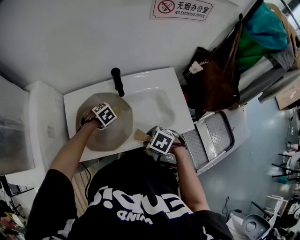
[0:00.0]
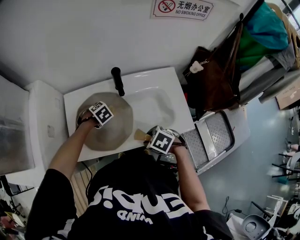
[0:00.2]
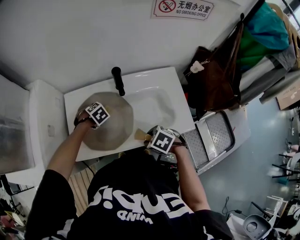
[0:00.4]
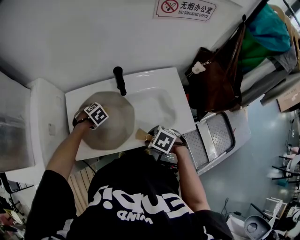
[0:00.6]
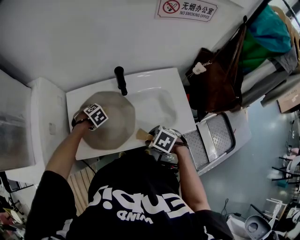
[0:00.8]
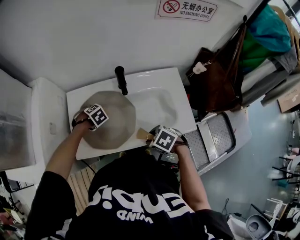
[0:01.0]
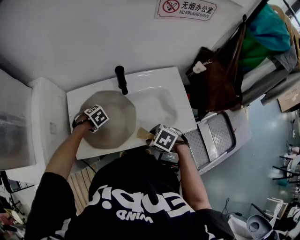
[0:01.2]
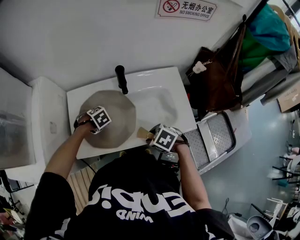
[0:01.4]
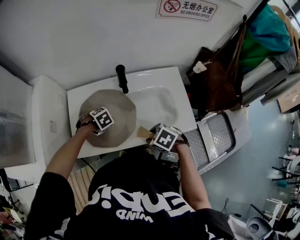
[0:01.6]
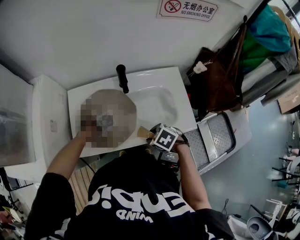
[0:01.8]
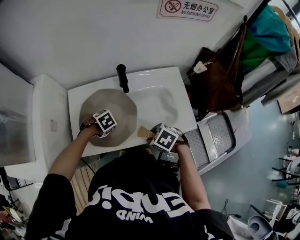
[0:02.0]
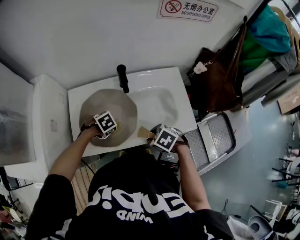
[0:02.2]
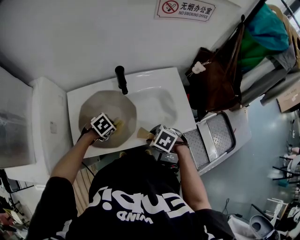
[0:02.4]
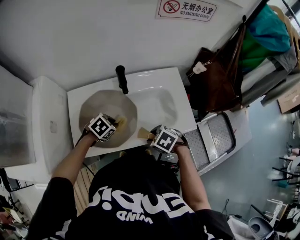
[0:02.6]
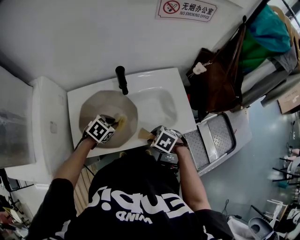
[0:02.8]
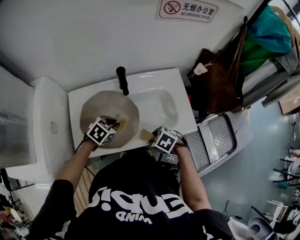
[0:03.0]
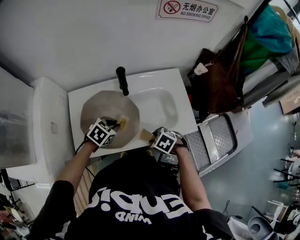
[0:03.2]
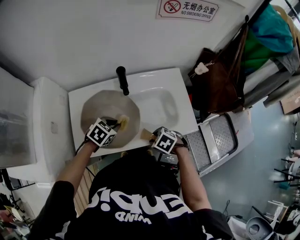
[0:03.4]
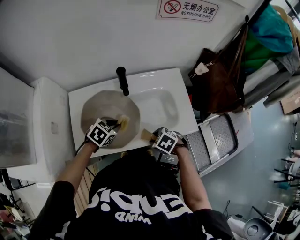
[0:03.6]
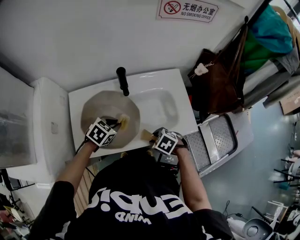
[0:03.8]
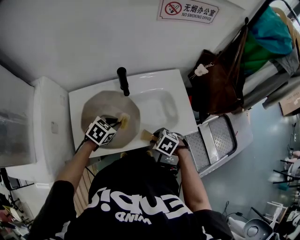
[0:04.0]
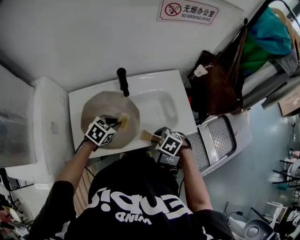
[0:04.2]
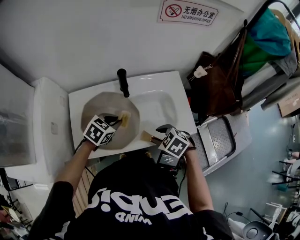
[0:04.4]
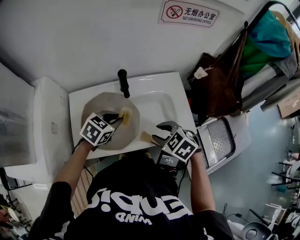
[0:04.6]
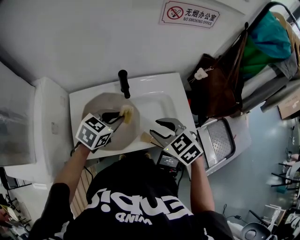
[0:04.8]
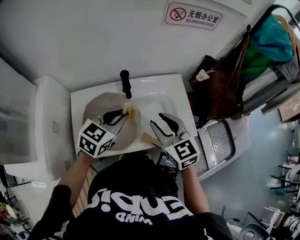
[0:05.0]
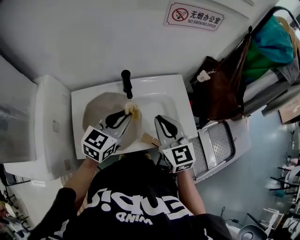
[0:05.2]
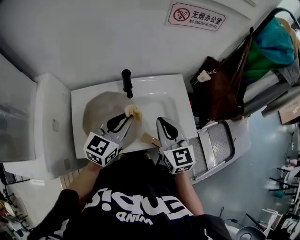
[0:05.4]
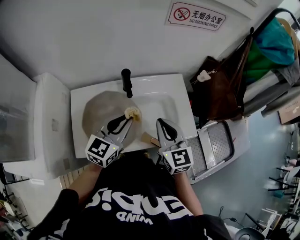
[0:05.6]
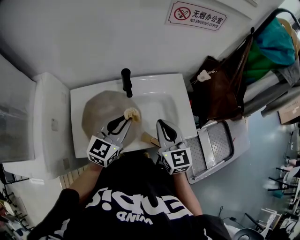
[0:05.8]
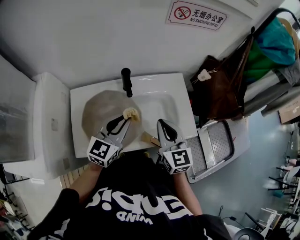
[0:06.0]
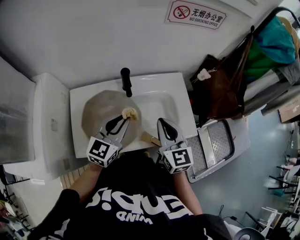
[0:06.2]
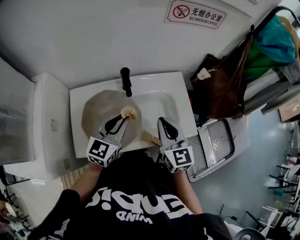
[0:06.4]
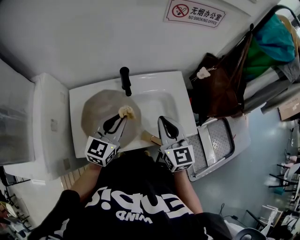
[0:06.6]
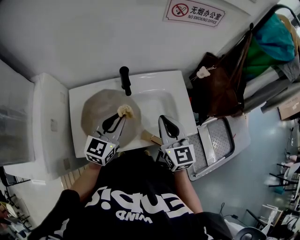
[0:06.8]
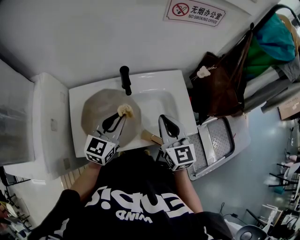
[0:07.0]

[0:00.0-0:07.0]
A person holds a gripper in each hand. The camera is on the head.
0:00.0 to 0:01.4: The left gripper moves some 5 cm.
0:01.4 to 0:02.8: The left gripper moves some 10 cm, and swivels approximately 30 degrees.
0:02.8 to 0:04.2: The grippers move only a little.
0:04.2 to 0:05.6: Both grippers move upward, roughly 20 cm. The left gripper angles its fingers upward, by approximately 40 degrees, while the right gripper tilts its fingers roughly 50 degrees upward, and closes its fingers.
0:05.6 to 0:07.0: There are only small adjustments of the grippers.

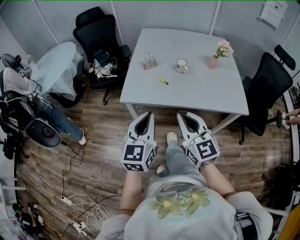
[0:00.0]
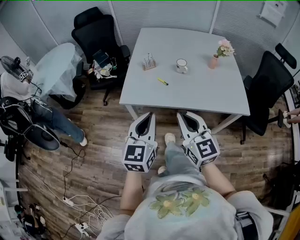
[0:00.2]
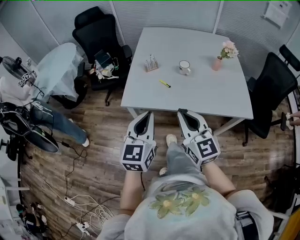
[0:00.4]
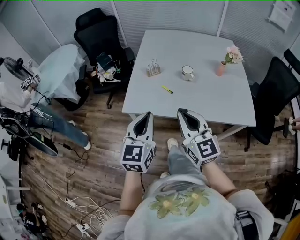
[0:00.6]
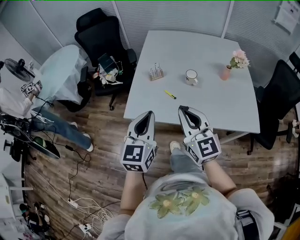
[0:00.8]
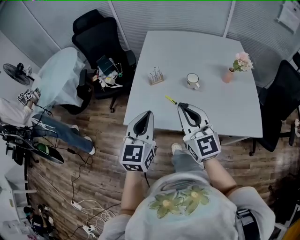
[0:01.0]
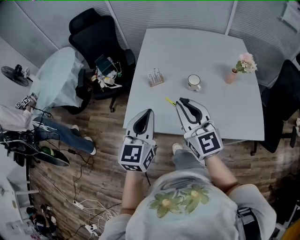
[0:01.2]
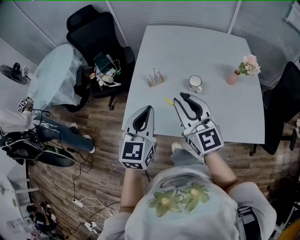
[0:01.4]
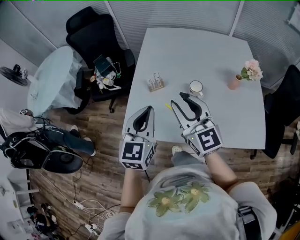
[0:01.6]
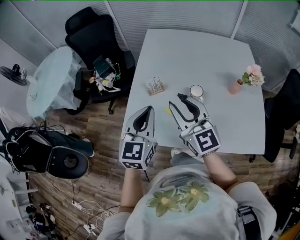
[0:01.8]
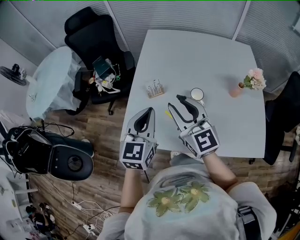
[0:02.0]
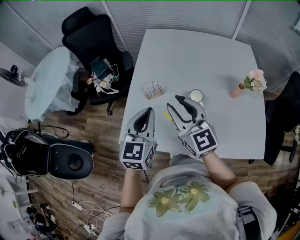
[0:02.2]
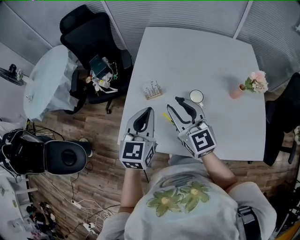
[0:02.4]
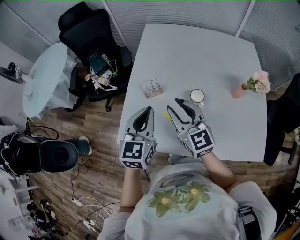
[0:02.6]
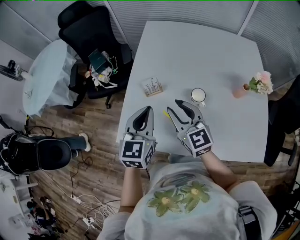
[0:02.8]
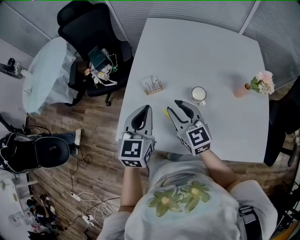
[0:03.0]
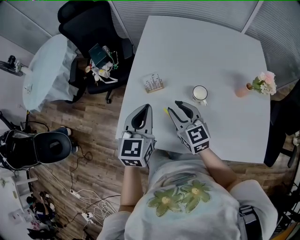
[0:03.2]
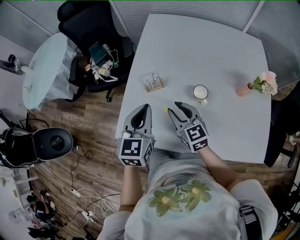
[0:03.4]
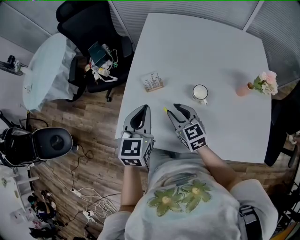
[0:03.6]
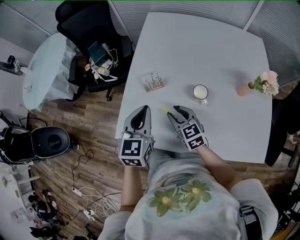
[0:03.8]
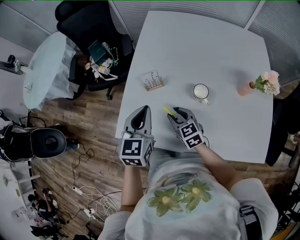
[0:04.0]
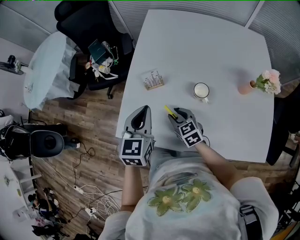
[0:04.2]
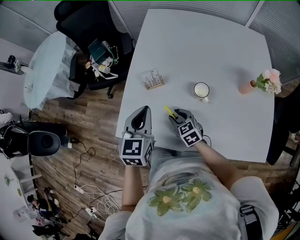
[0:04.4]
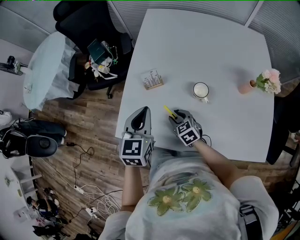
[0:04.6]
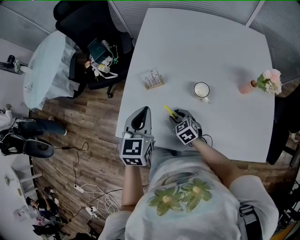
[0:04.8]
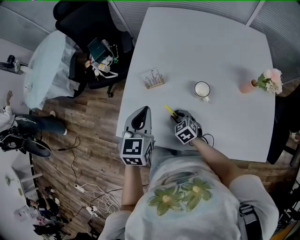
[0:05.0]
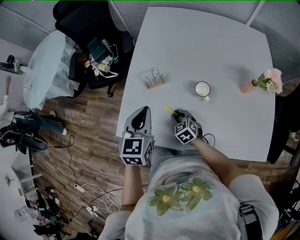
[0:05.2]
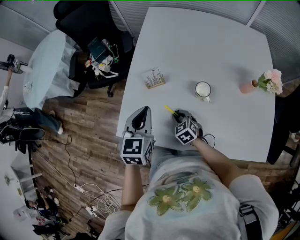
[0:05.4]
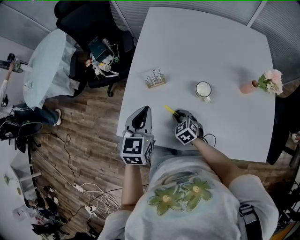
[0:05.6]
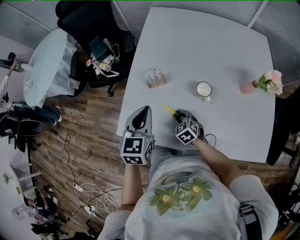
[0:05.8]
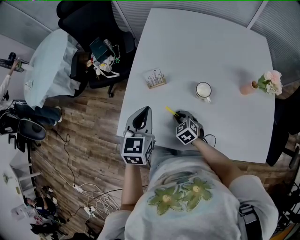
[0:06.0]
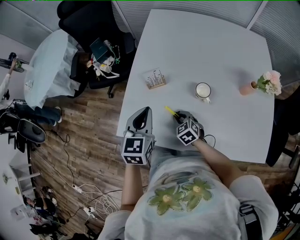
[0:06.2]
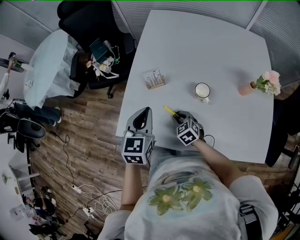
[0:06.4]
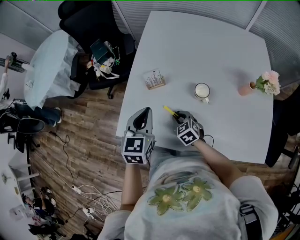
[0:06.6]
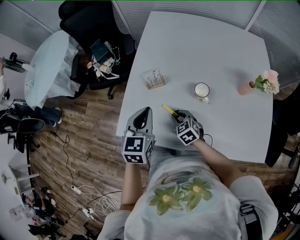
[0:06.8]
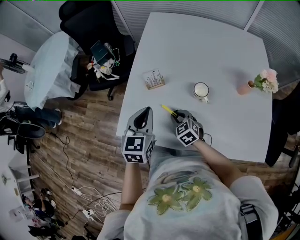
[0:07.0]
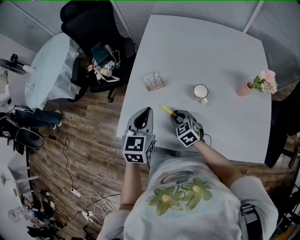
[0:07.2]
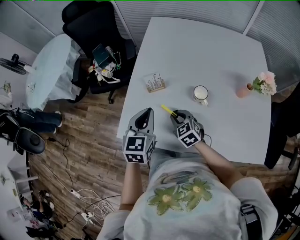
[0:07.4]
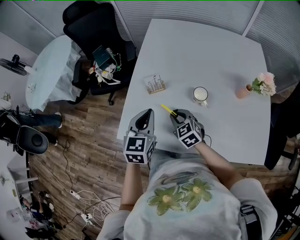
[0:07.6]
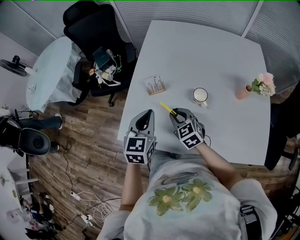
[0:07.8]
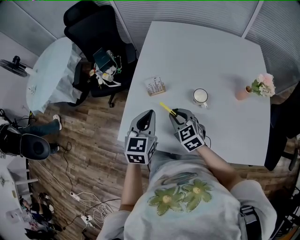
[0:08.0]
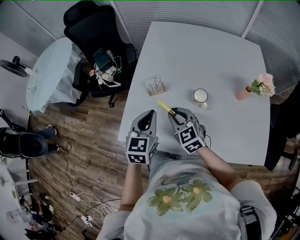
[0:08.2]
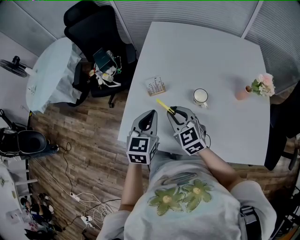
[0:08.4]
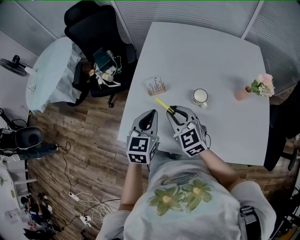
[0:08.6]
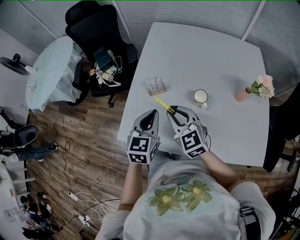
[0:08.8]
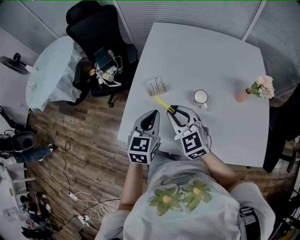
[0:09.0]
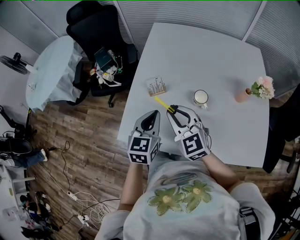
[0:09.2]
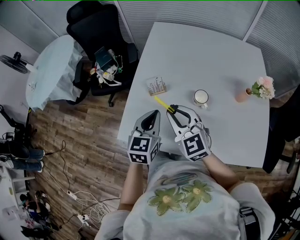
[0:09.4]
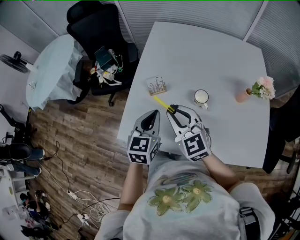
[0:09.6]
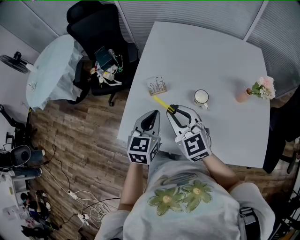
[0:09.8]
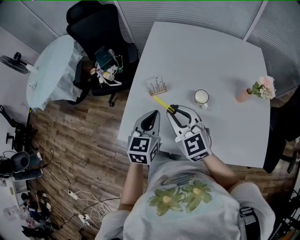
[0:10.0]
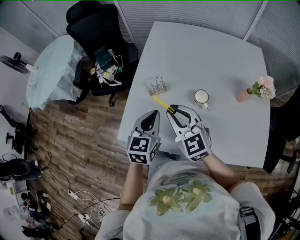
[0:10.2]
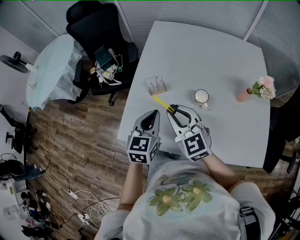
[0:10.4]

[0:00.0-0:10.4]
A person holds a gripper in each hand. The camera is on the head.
0:00.0 to 0:01.4: Both grippers travel together forward, approximately 30 cm. The right gripper opens up.
0:01.4 to 0:03.0: The right gripper heads downward and forward, covering some 20 cm; the left gripper shifts about 15 cm forward and downward.
0:03.0 to 0:04.4: The right gripper shifts approximately 20 cm downward, and swivels approximately 30 degrees.
0:04.4 to 0:06.0: There are only small adjustments of the grippers.
0:06.0 to 0:07.4: The right gripper is displaced upward by approximately 10 cm.
0:07.4 to 0:09.0: The right gripper heads upward, covering some 15 cm, and swivels about 20 degrees.
0:09.0 to 0:10.4: There are only small adjustments of the grippers.

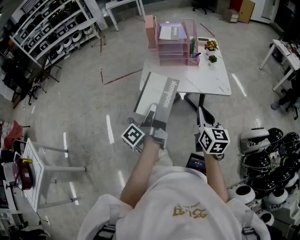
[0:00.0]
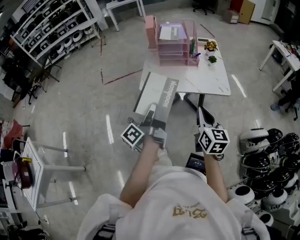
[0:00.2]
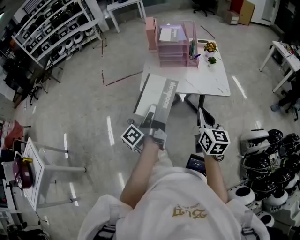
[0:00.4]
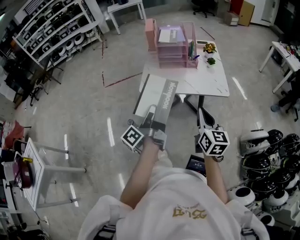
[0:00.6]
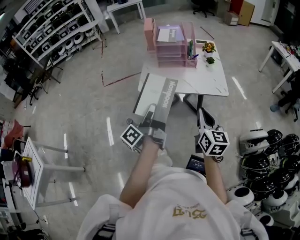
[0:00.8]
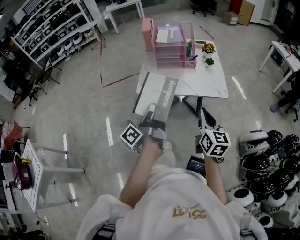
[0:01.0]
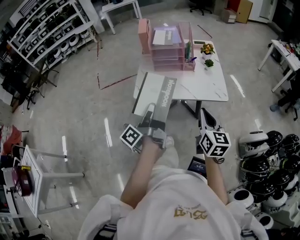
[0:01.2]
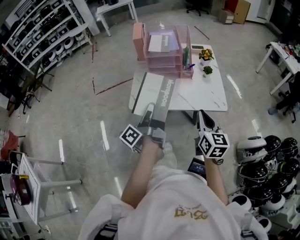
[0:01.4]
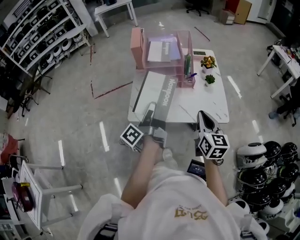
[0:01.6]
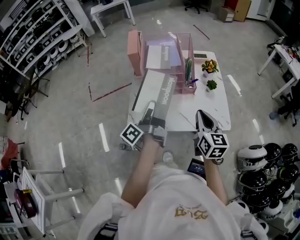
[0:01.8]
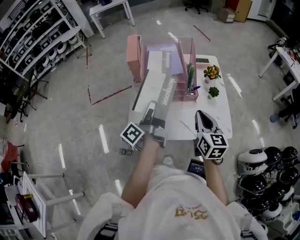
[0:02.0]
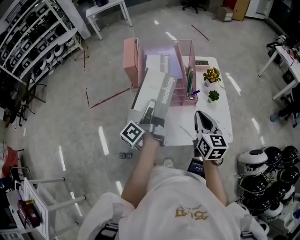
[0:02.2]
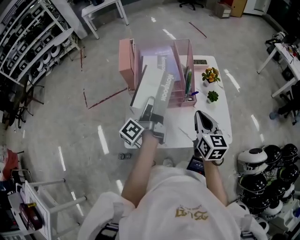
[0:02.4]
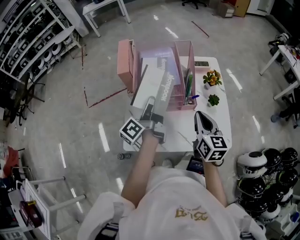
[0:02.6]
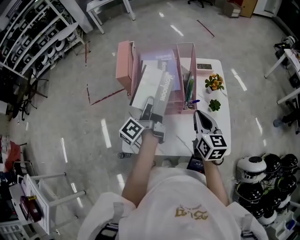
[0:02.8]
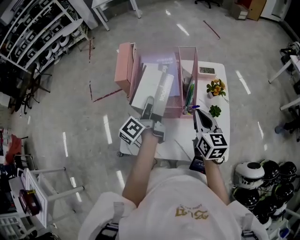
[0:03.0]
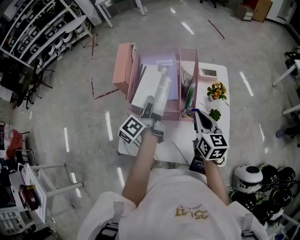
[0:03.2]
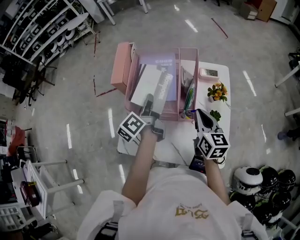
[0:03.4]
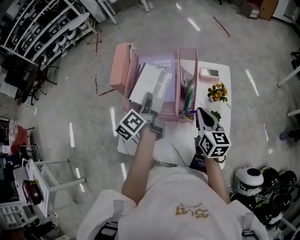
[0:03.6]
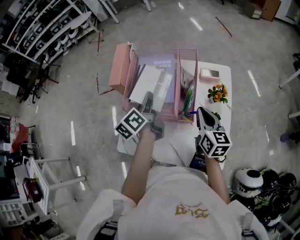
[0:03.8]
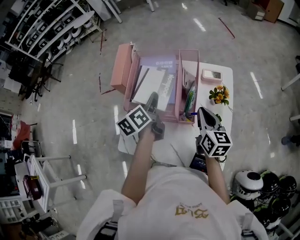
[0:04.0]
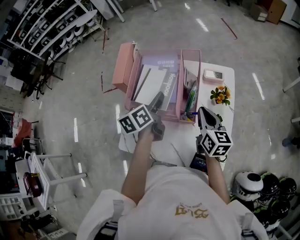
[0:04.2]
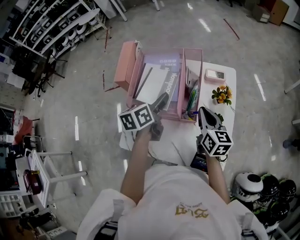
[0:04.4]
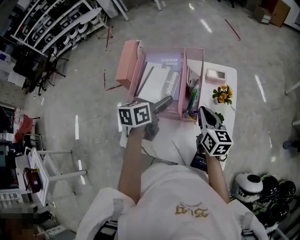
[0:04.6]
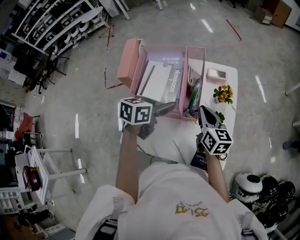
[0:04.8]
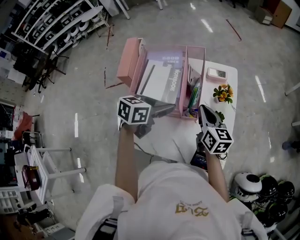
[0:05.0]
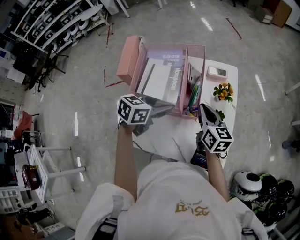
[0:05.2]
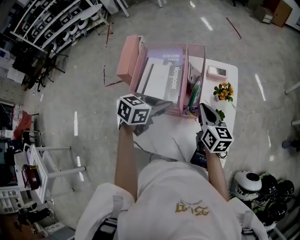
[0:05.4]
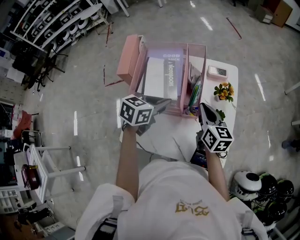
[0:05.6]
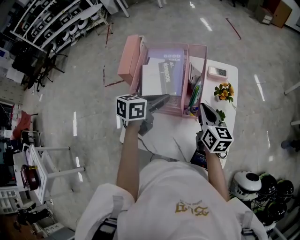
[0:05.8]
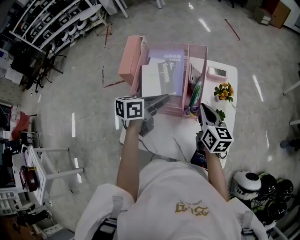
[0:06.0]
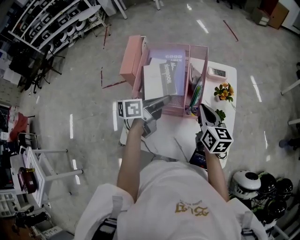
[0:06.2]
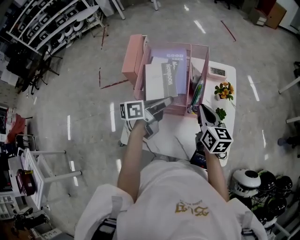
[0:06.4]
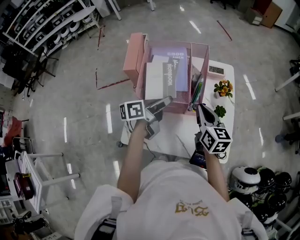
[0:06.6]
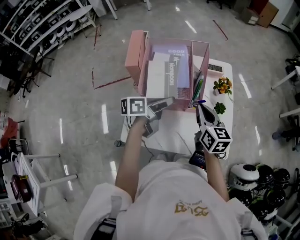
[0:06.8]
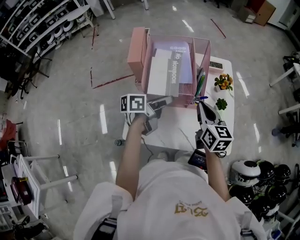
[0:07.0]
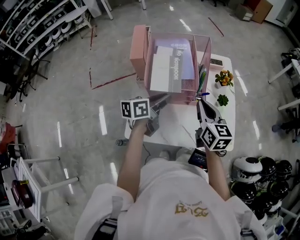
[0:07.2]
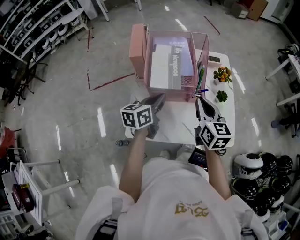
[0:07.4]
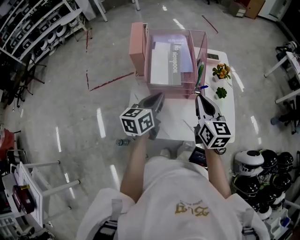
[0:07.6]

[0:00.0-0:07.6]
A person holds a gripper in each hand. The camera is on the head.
0:00.0 to 0:01.6: Both grippers move forward, about 20 cm.
0:01.6 to 0:03.0: Both grippers travel together forward, about 30 cm. The left gripper swivels approximately 20 degrees.
0:03.0 to 0:04.6: The left gripper travels to the right by approximately 10 cm, rotates about 50 degrees, and opens up, while the right gripper heads forward, covering some 5 cm.
0:04.6 to 0:06.0: The left gripper closes its fingers.
0:06.0 to 0:07.6: The two grippers go approximately 15 cm backward and to the left. The left gripper opens, then closes again.
